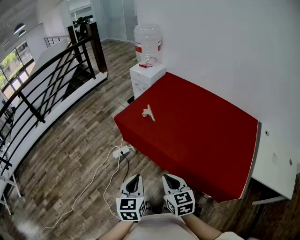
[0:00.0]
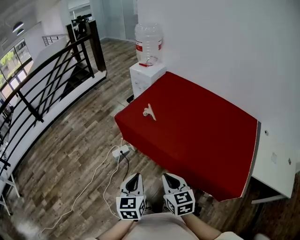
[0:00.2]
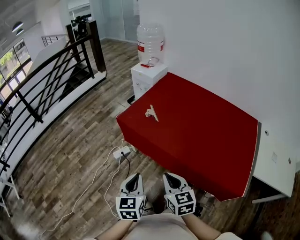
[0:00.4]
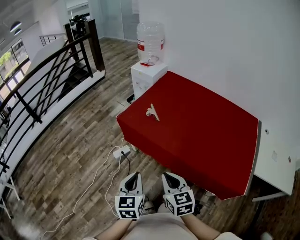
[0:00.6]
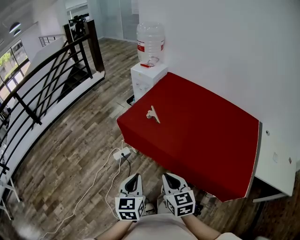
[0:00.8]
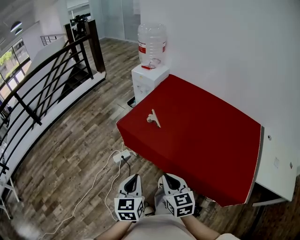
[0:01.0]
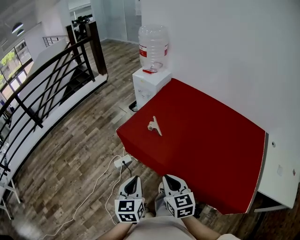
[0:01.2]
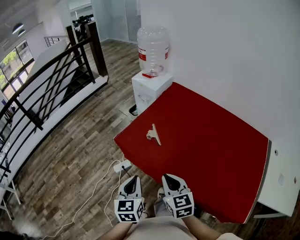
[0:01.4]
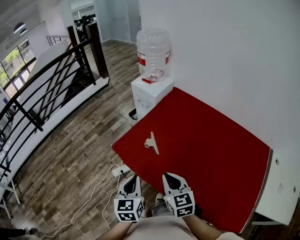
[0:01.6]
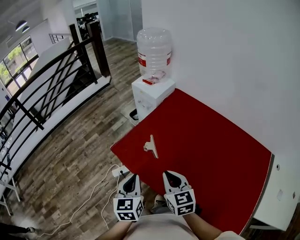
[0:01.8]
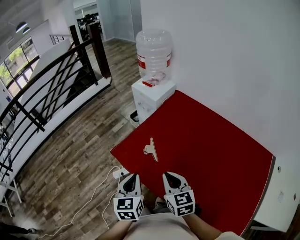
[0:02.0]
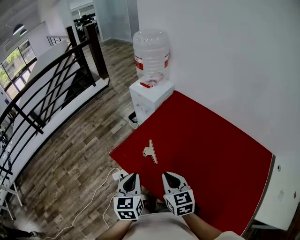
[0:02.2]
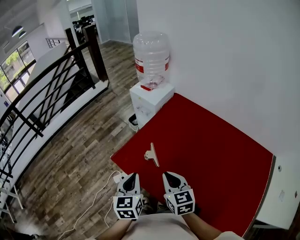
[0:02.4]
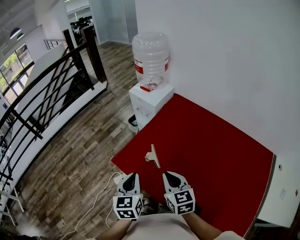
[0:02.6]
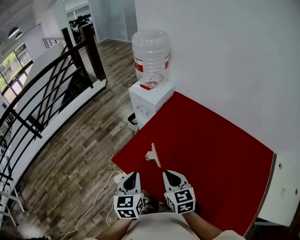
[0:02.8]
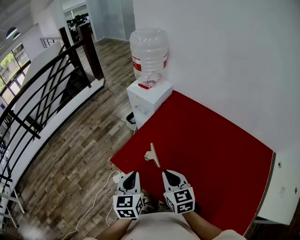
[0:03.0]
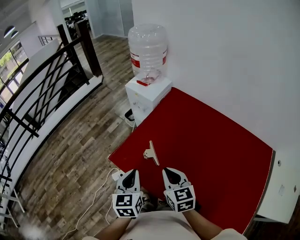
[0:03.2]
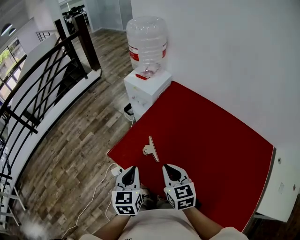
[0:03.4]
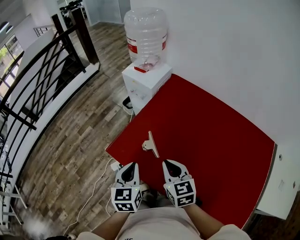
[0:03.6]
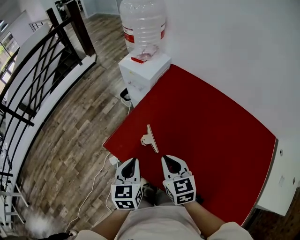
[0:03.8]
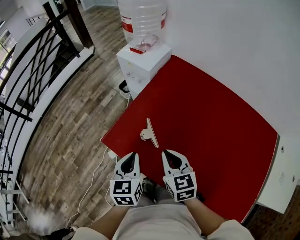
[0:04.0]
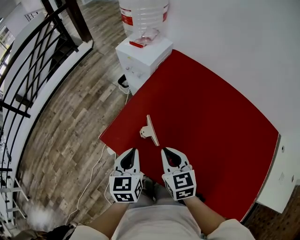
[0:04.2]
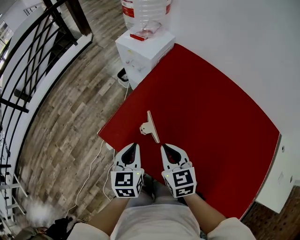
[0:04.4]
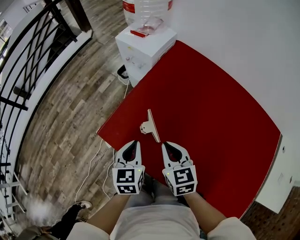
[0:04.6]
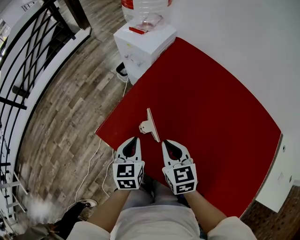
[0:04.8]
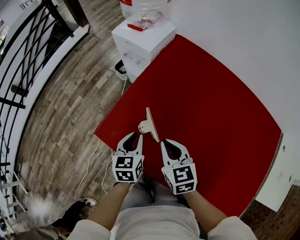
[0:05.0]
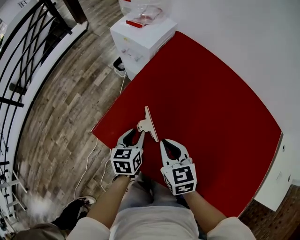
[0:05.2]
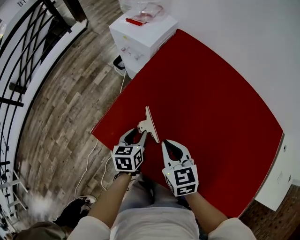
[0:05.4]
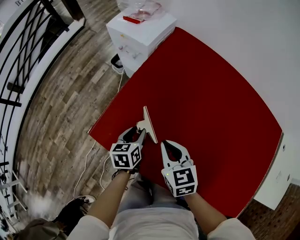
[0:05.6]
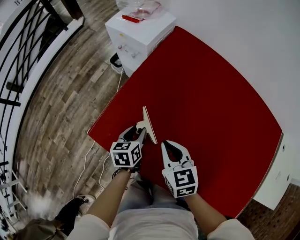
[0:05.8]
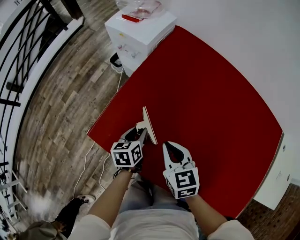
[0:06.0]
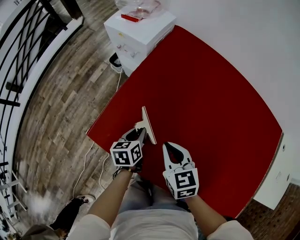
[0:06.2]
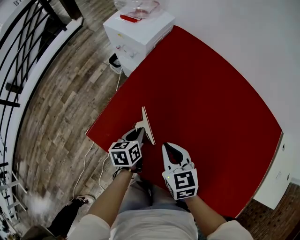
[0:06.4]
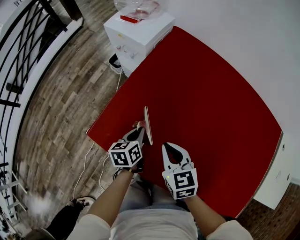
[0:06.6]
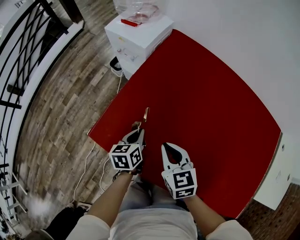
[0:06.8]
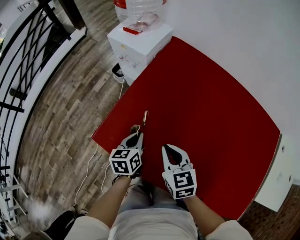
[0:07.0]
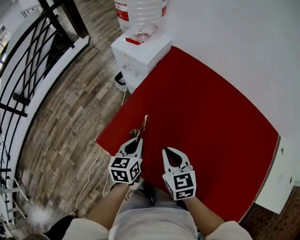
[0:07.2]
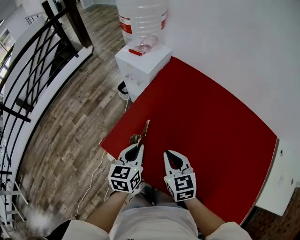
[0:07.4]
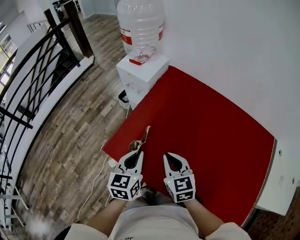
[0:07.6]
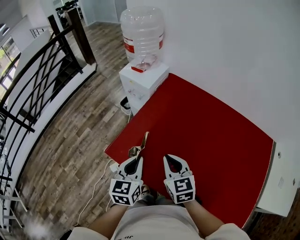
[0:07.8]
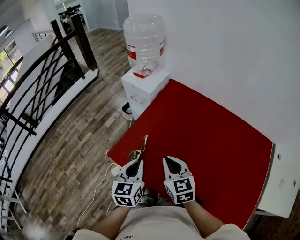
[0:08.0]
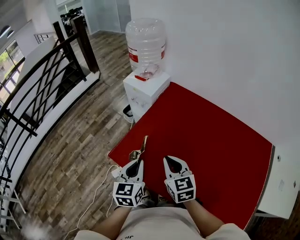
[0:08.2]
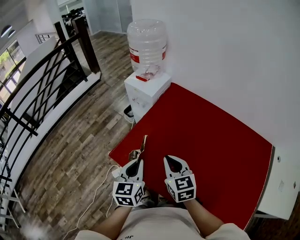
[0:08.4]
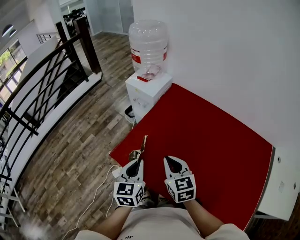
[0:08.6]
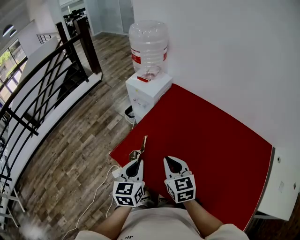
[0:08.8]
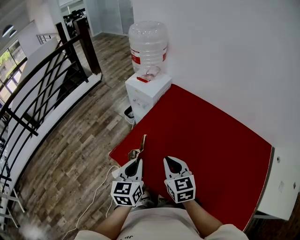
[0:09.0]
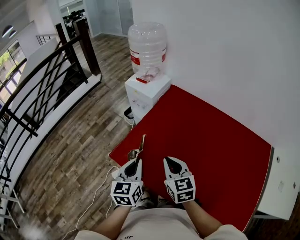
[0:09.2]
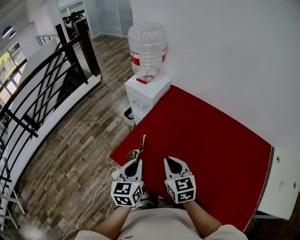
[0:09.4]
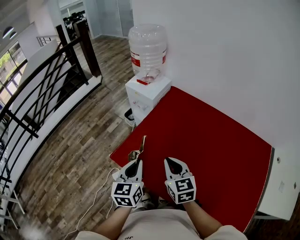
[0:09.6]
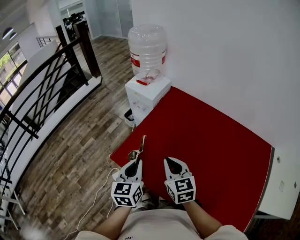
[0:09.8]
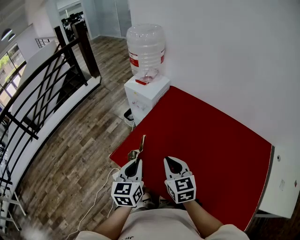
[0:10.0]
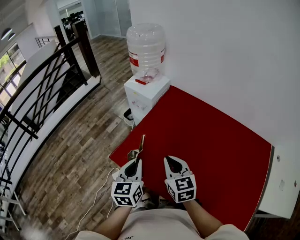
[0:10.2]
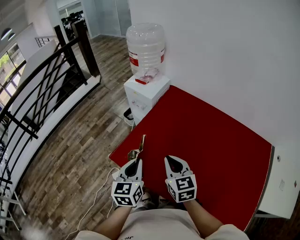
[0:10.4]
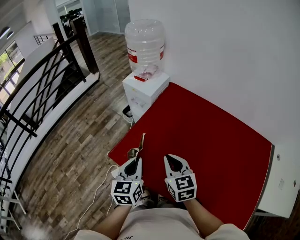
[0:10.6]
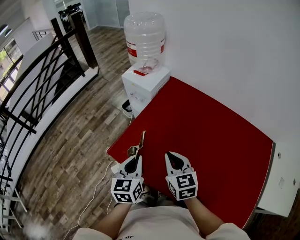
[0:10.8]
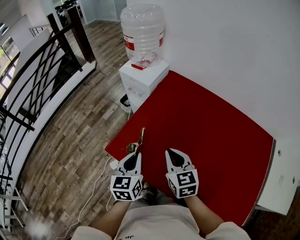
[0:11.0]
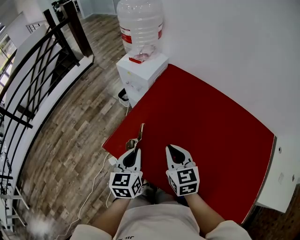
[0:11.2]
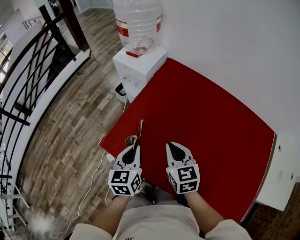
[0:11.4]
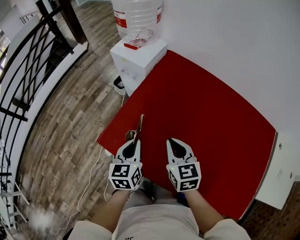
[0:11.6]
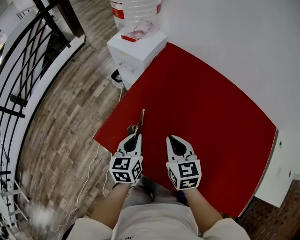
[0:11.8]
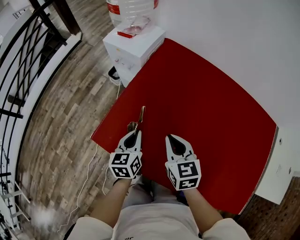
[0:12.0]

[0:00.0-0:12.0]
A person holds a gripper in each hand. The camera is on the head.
0:00.0 to 0:01.6: Both grippers travel together forward, some 25 cm.
0:01.6 to 0:03.0: The two grippers go about 10 cm forward.
0:03.0 to 0:04.4: Both grippers move downward and forward, about 10 cm.
0:04.4 to 0:06.0: The left gripper heads downward and forward, covering about 20 cm, swivels about 30 degrees, and opens. The right gripper moves downward, about 5 cm.
0:06.0 to 0:07.6: The left gripper travels upward by about 20 cm, changes its angle by some 30 degrees, and closes, while the right gripper heads upward, covering some 10 cm.
0:07.6 to 0:09.0: The left gripper travels upward and backward by roughly 10 cm; the right gripper heads upward, covering roughly 5 cm.
0:09.0 to 0:10.4: Both grippers stay put.
0:10.4 to 0:12.0: The left gripper is displaced downward and forward by some 20 cm. Meanwhile the right gripper travels downward and forward by some 15 cm.

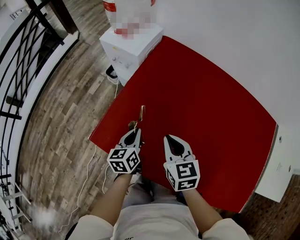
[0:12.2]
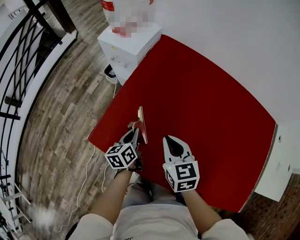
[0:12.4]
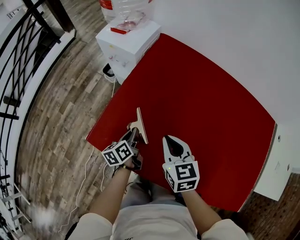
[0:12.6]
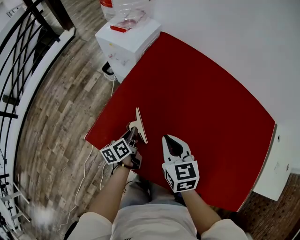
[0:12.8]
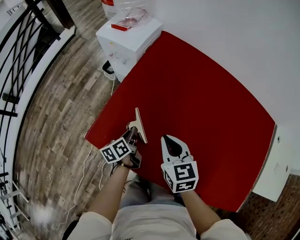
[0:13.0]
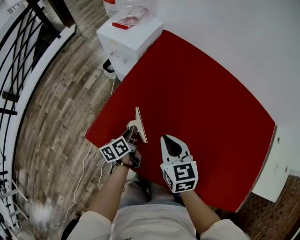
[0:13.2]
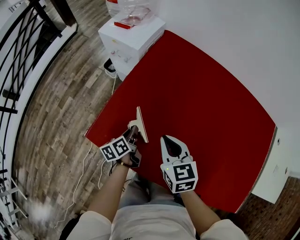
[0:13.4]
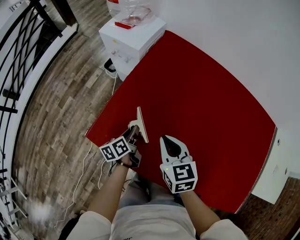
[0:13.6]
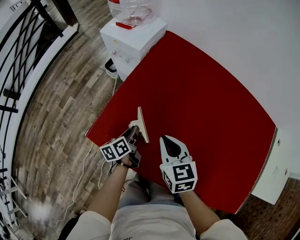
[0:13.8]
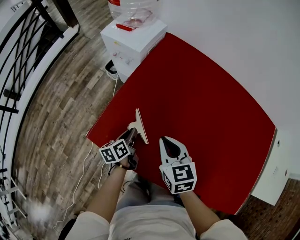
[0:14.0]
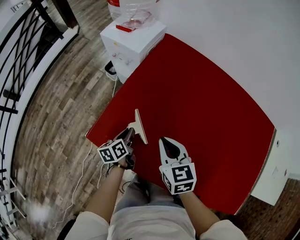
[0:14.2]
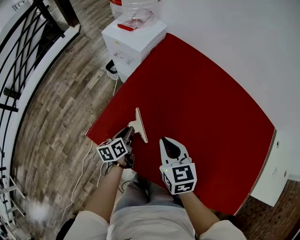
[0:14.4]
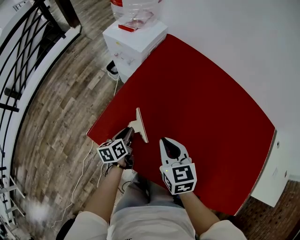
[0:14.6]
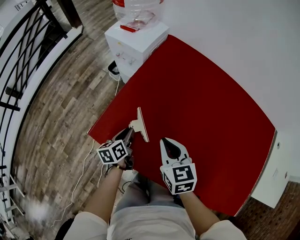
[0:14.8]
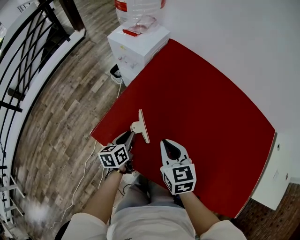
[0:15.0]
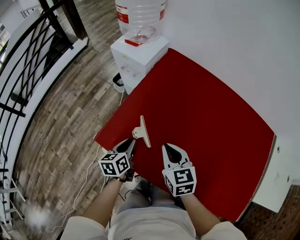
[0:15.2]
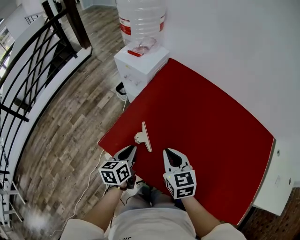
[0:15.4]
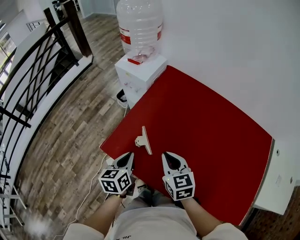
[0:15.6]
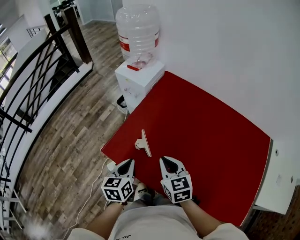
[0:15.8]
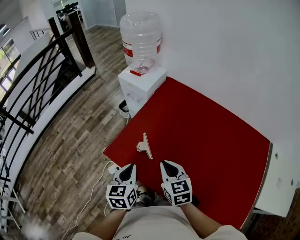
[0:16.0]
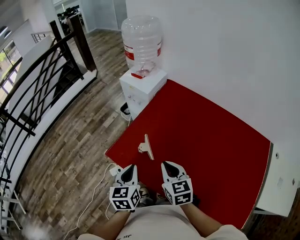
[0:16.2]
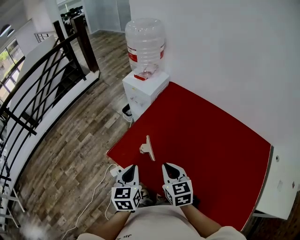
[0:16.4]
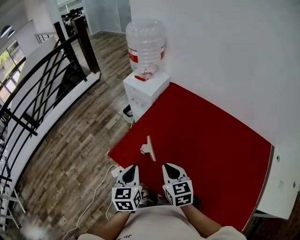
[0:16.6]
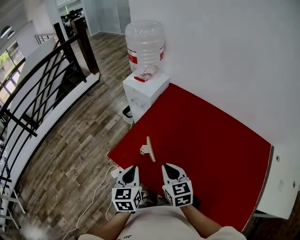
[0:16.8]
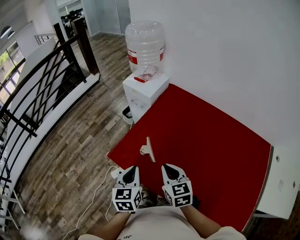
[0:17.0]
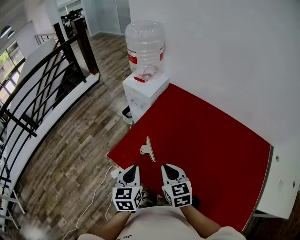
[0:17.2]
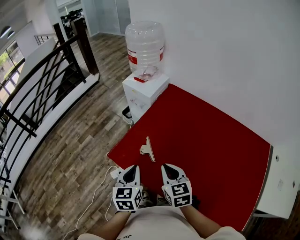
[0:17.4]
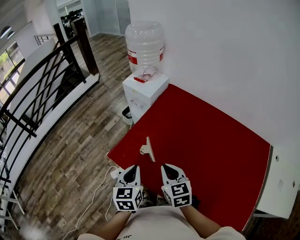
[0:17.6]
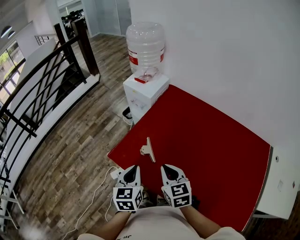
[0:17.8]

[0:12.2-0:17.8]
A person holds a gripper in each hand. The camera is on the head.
0:12.2 to 0:13.6: The left gripper goes about 10 cm downward, and swivels roughly 30 degrees.
0:13.6 to 0:15.0: The left gripper changes place by about 5 cm.
0:15.0 to 0:16.4: The left gripper heads upward and backward, covering roughly 25 cm, and changes its angle by about 30 degrees. The right gripper moves backward and upward, some 10 cm.
0:16.4 to 0:17.8: The two grippers keep their place.

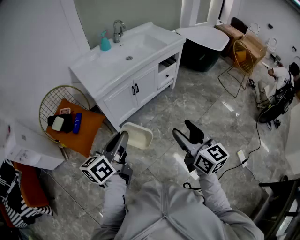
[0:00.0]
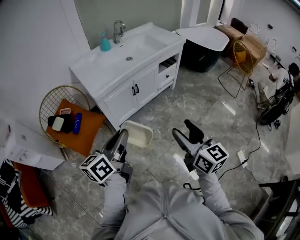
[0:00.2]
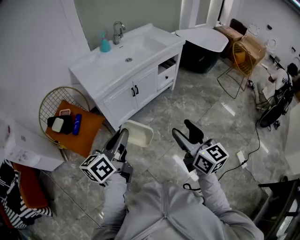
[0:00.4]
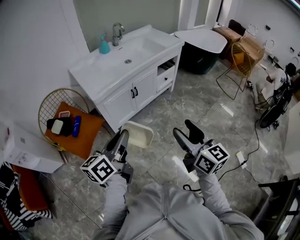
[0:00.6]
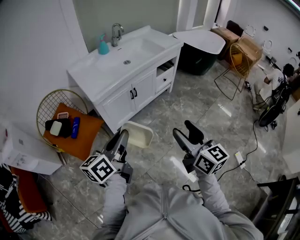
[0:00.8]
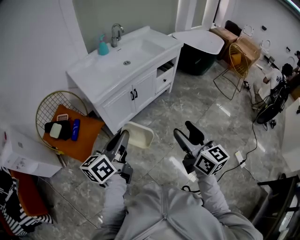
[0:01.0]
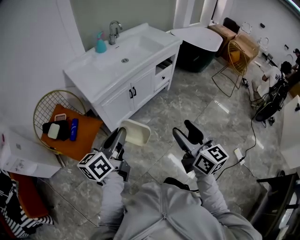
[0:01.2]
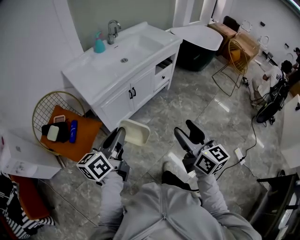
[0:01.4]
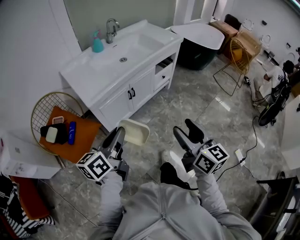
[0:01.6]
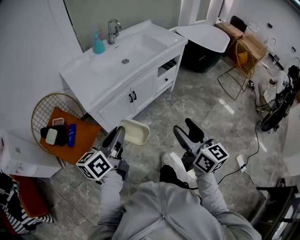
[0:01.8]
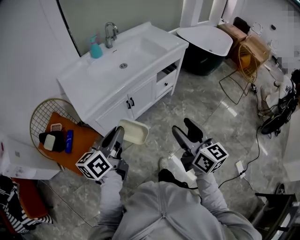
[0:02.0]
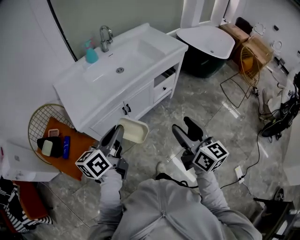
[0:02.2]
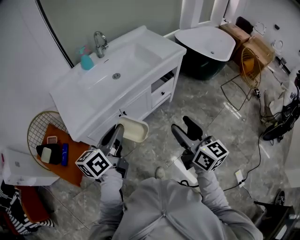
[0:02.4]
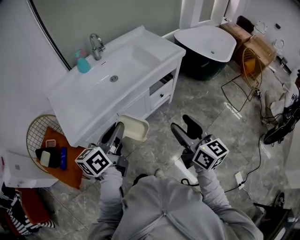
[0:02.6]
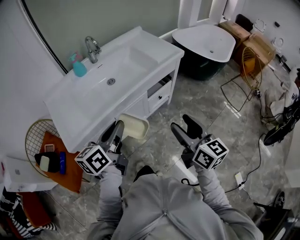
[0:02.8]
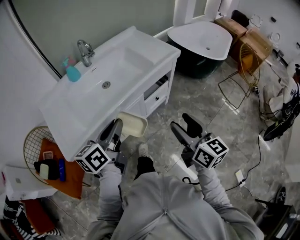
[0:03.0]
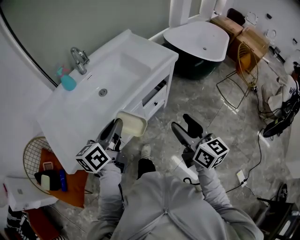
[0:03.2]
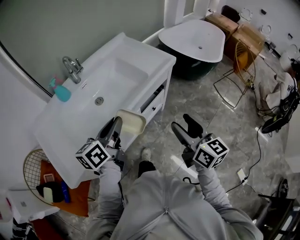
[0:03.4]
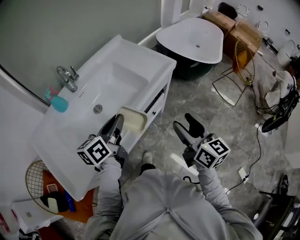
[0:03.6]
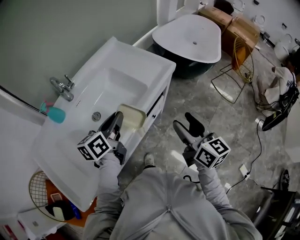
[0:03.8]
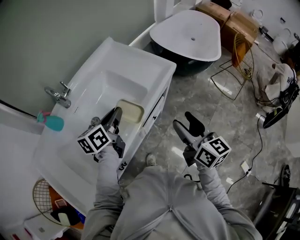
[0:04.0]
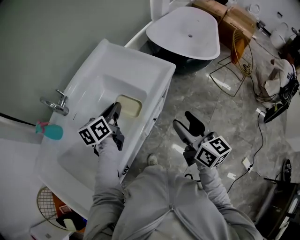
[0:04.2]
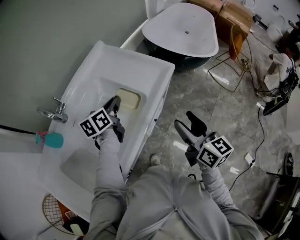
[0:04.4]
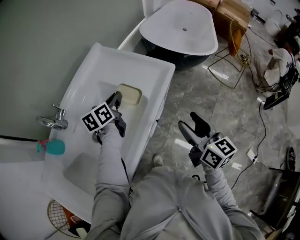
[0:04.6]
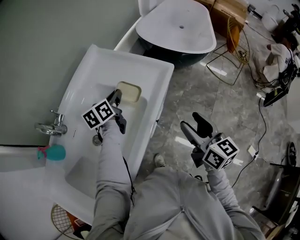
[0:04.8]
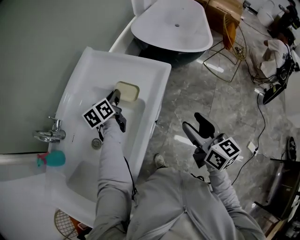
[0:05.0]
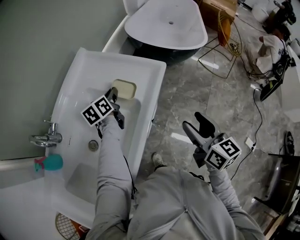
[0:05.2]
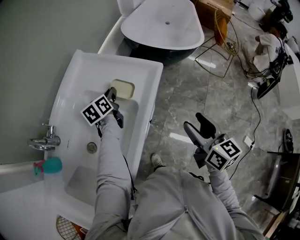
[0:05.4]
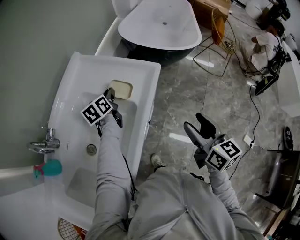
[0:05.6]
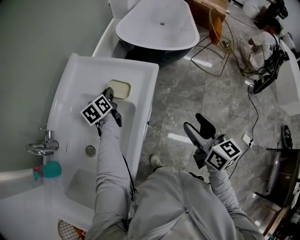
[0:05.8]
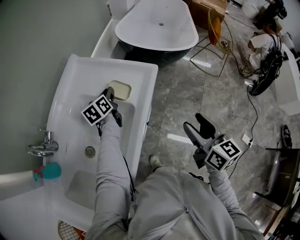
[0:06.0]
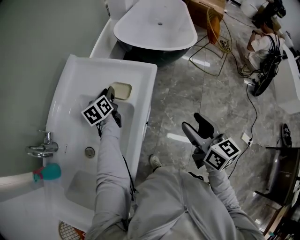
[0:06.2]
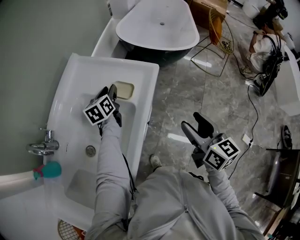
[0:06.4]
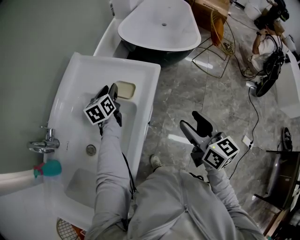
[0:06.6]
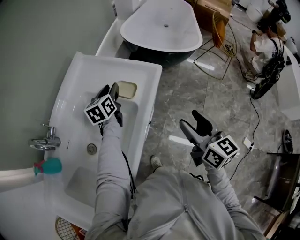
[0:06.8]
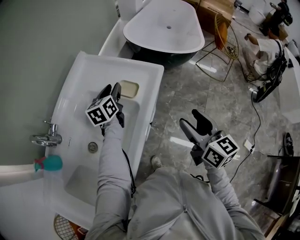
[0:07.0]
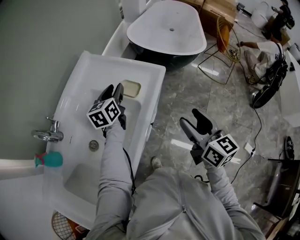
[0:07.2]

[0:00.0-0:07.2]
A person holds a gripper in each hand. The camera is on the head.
0:00.0 to 0:01.4: The left gripper shifts about 5 cm forward.
0:01.4 to 0:02.8: Both grippers travel together forward and to the right, about 35 cm.
0:02.8 to 0:04.4: The left gripper heads forward, covering about 50 cm, and rotates approximately 20 degrees; the right gripper is displaced forward by approximately 30 cm, and rotates roughly 20 degrees.
0:04.4 to 0:05.8: The right gripper shifts some 5 cm to the right. Meanwhile the left gripper is displaced forward and downward by roughly 15 cm.
0:05.8 to 0:07.2: The left gripper heads upward, covering some 10 cm.
